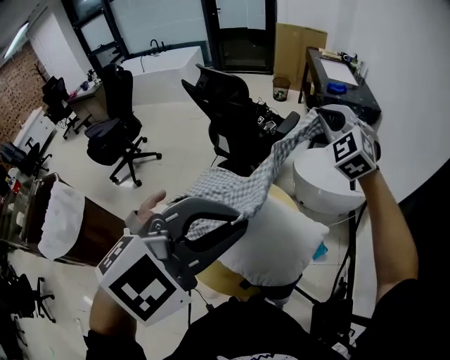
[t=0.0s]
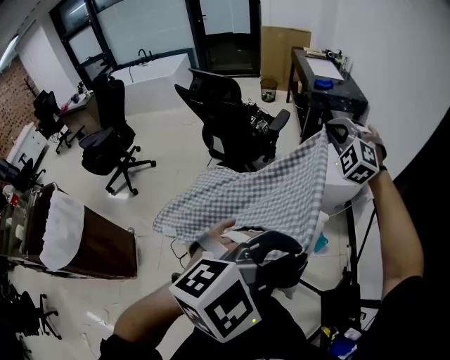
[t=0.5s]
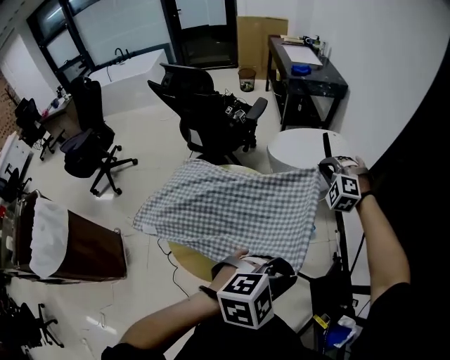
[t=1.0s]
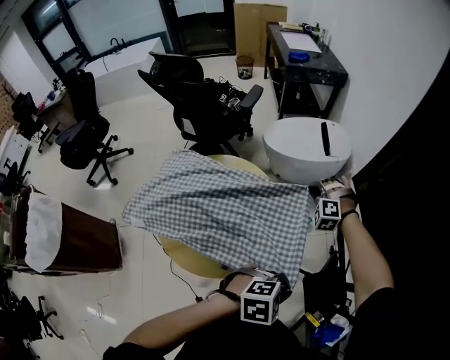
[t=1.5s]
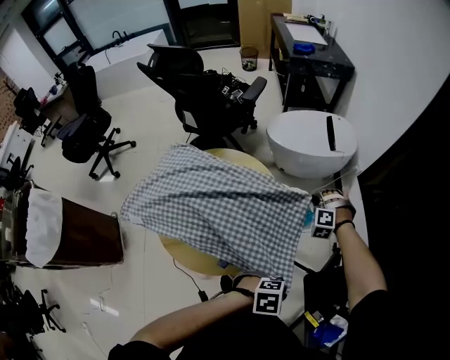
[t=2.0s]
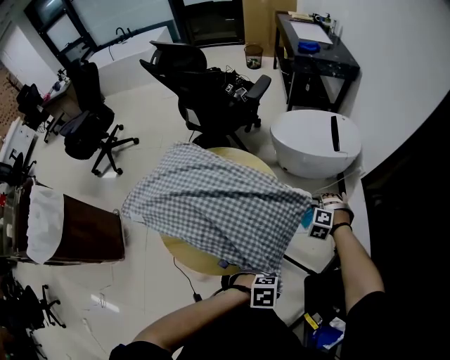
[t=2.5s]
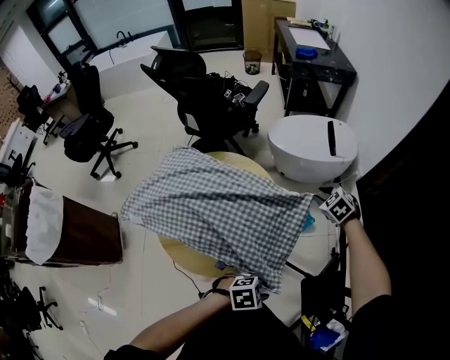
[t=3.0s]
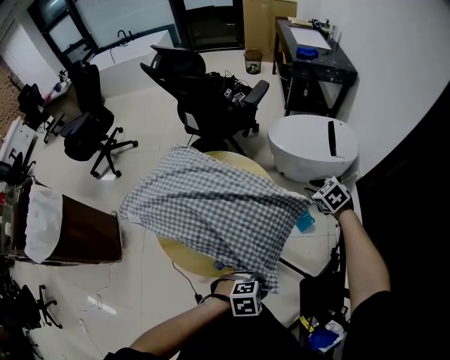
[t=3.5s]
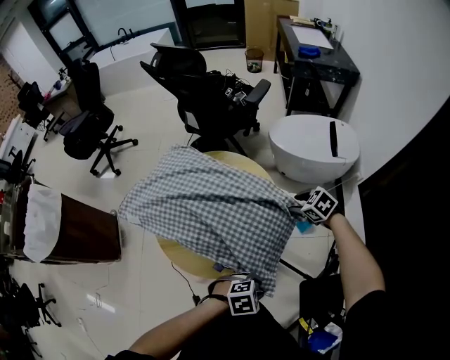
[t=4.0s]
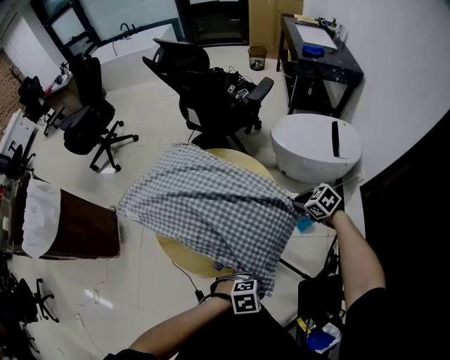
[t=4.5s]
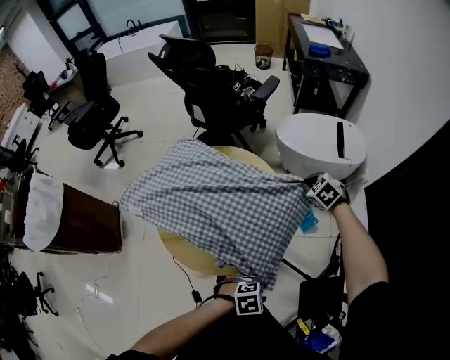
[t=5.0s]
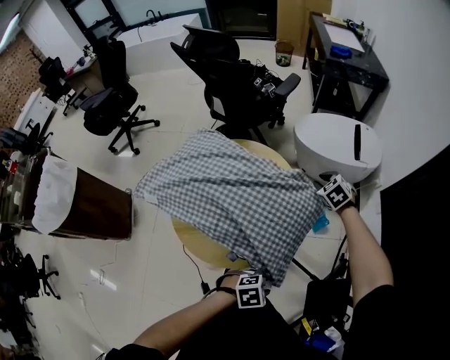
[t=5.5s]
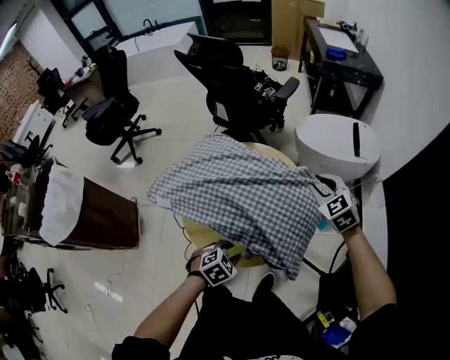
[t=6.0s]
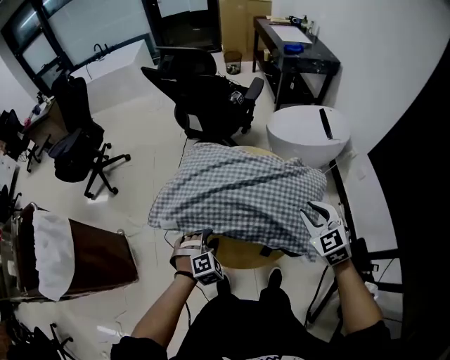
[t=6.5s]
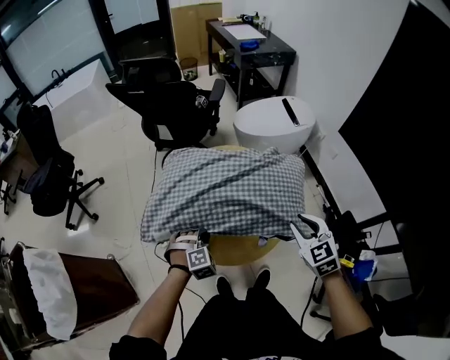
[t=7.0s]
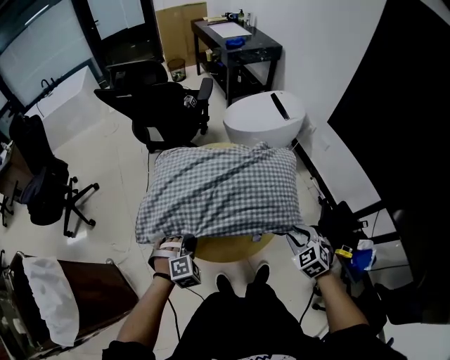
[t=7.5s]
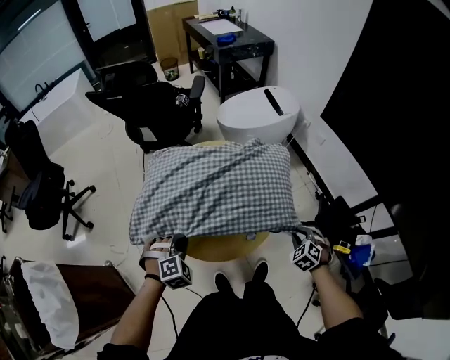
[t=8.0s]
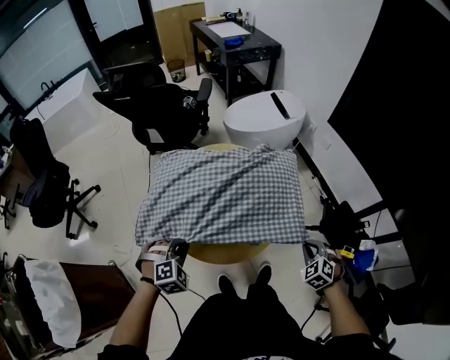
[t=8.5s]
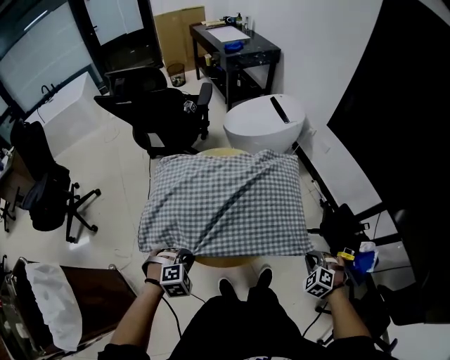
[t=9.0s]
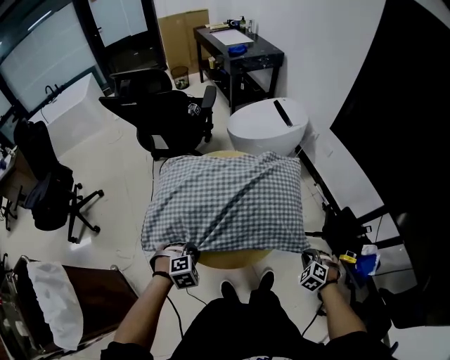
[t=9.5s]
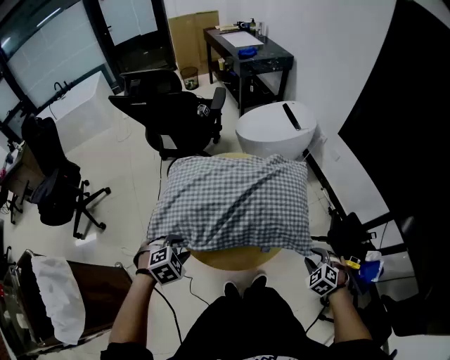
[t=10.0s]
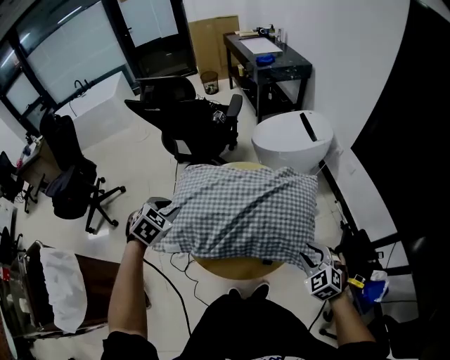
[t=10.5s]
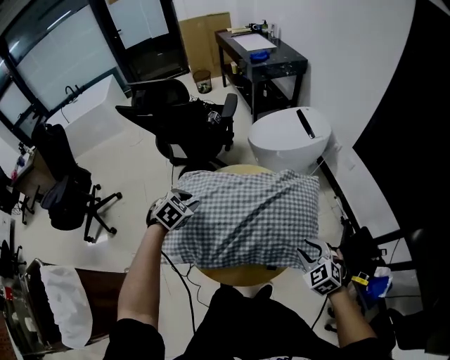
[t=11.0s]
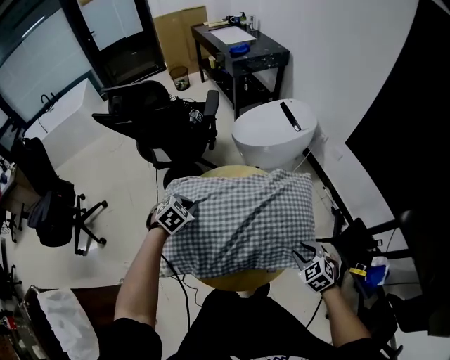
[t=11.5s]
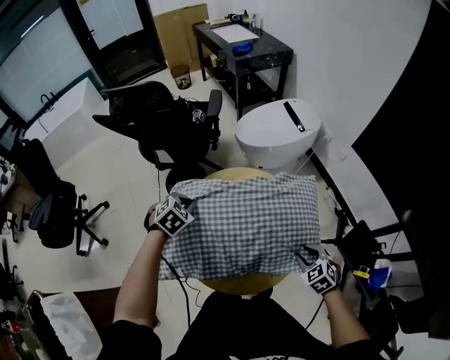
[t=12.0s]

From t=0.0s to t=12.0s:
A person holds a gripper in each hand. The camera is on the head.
From t=0.0s to t=2.0s: Both grippers move downward, roughly 40 cm. The right gripper tilts its fingers about 40 degrees downward. The left gripper rotates about 60 degrees.
From t=2.0s to t=4.0s: The left gripper moves some 10 cm, and opens. The right gripper reaches about 5 cm upward, then returns, rotates about 60 degrees, and opens.
From t=4.0s to t=6.0s: The left gripper changes place by about 20 cm, and swivels about 30 degrees. Meanwhile the right gripper shifts approximately 15 cm upward, swivels approximately 30 degrees, and closes, then opens again.
From t=6.0s to t=8.0s: The right gripper ends up some 35 cm from where it was, and changes its angle by roughly 40 degrees, while the left gripper changes place by roughly 20 cm, rotates around the line of its fingers by some 50 degrees, clockwise from behind, and closes.
From t=8.0s to t=10.0s: The right gripper swings up and down, some 5 cm each way, with 2 reversals. Meanwhile the left gripper ends up approximately 5 cm from where it was, rotates approximately 20 degrees, and opens up.
From t=10.0s to t=12.0s: The left gripper goes roughly 30 cm forward, and closes its fingers, while the right gripper moves forward and to the left, about 15 cm.

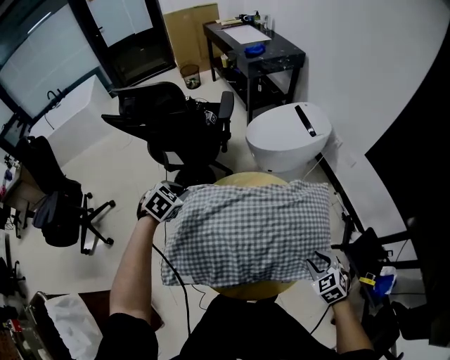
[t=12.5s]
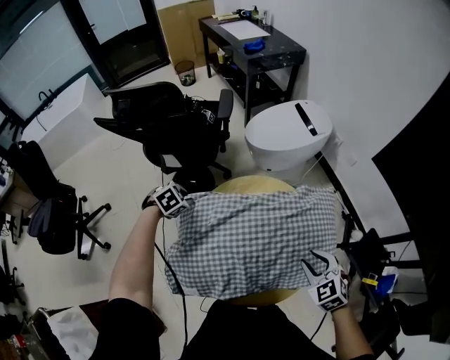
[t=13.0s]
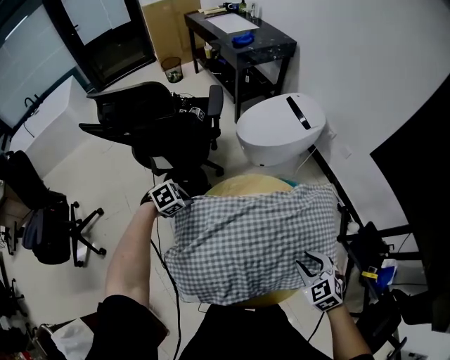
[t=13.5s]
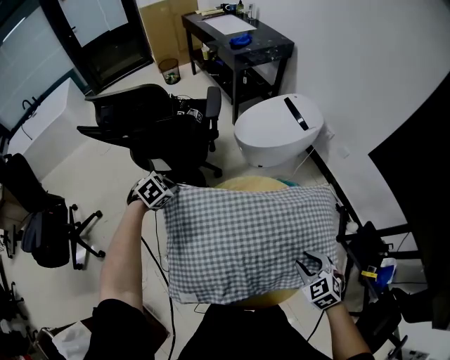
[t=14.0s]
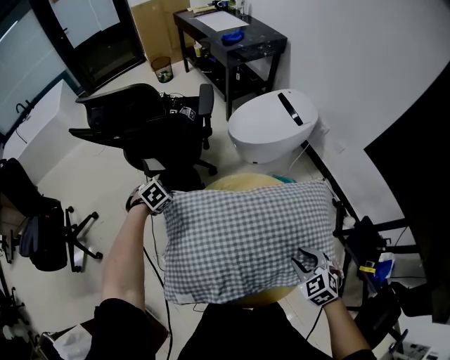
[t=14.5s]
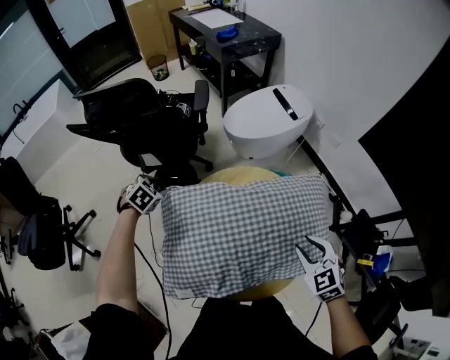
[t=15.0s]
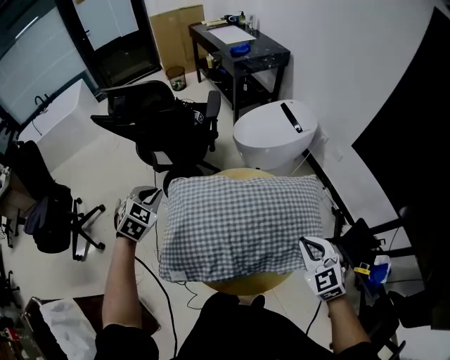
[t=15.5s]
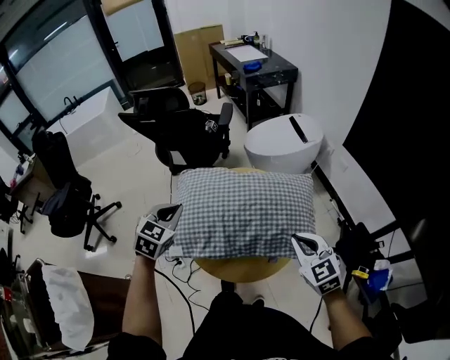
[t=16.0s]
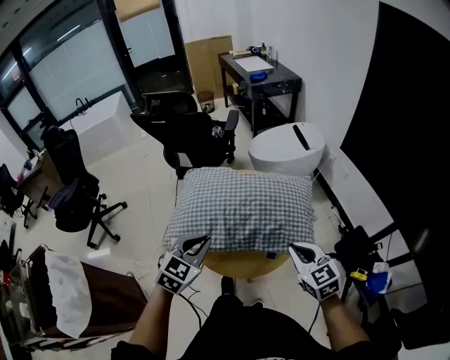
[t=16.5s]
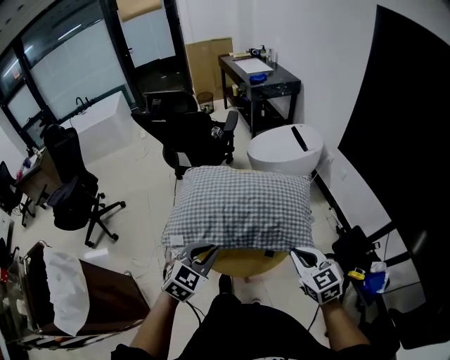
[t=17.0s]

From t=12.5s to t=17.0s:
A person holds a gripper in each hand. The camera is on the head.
From t=12.5s to t=14.5s: The left gripper moves up and down over roughly 15 cm, changing direction 2 times, and swivels some 20 degrees, while the right gripper moves some 10 cm.
From t=14.5s to t=17.0s: The right gripper changes place by some 20 cm, swivels about 30 degrees, and closes its fingers; the left gripper ends up some 50 cm from where it was, tilts its fingers about 40 degrees upward, and opens, then closes again.

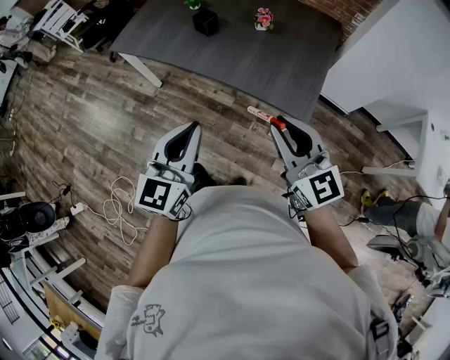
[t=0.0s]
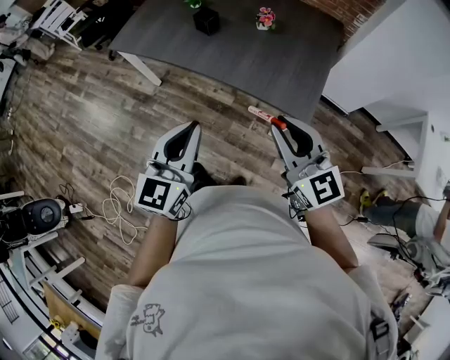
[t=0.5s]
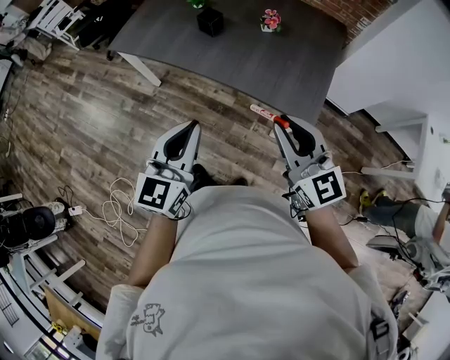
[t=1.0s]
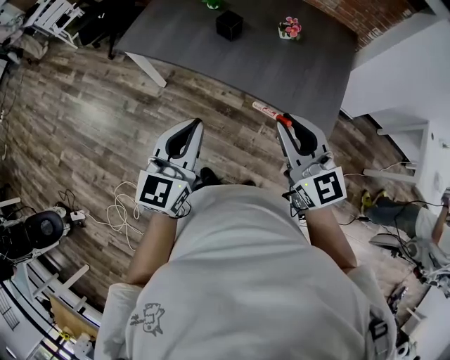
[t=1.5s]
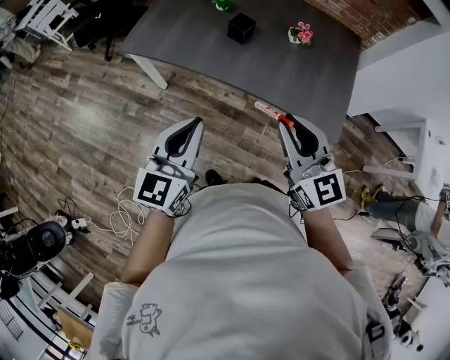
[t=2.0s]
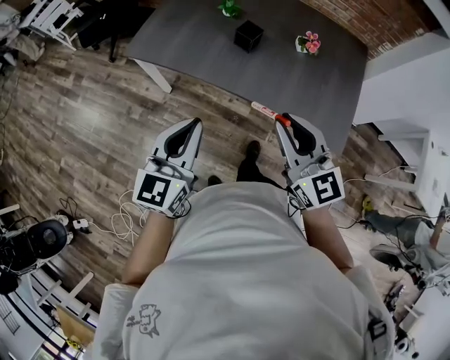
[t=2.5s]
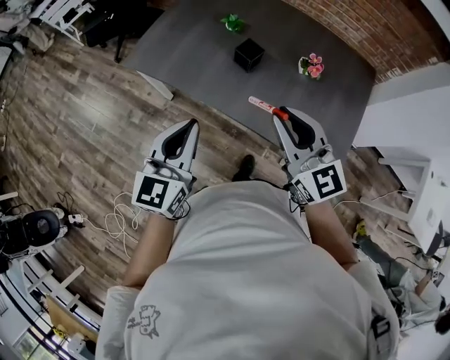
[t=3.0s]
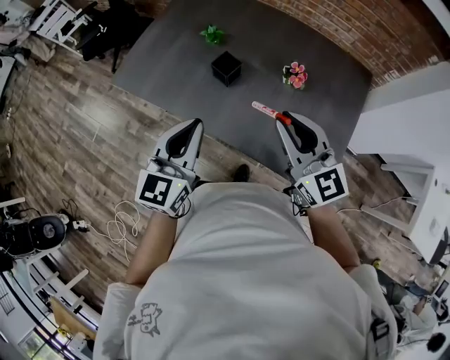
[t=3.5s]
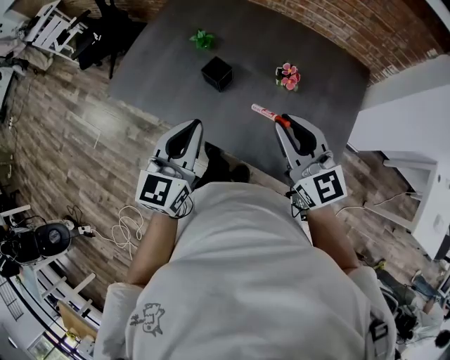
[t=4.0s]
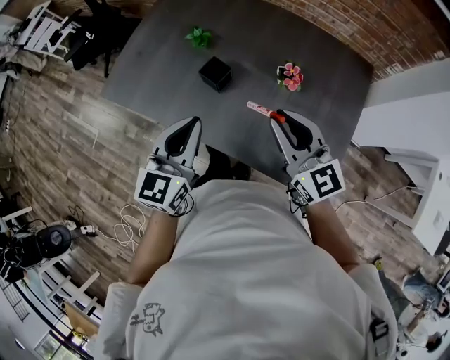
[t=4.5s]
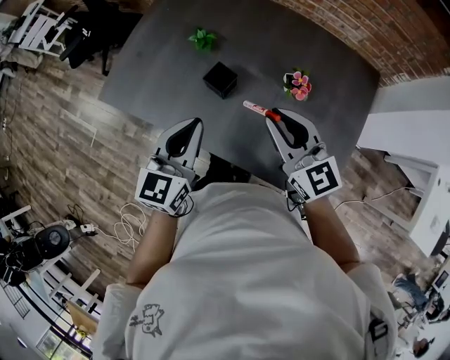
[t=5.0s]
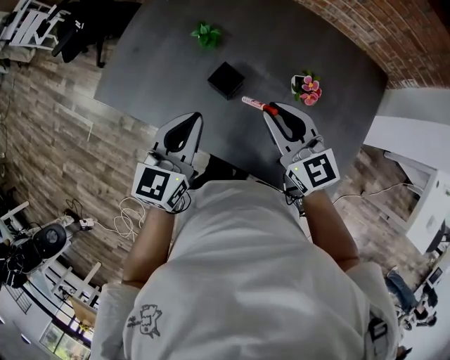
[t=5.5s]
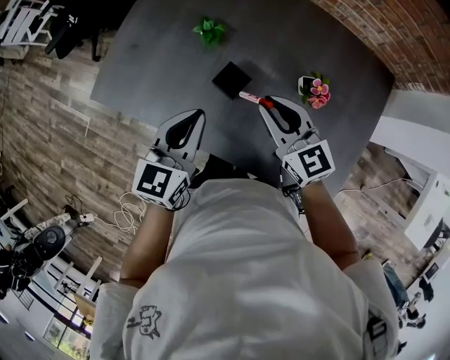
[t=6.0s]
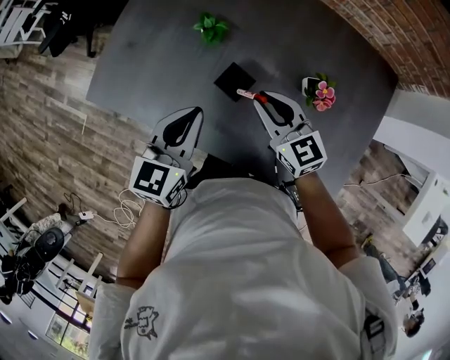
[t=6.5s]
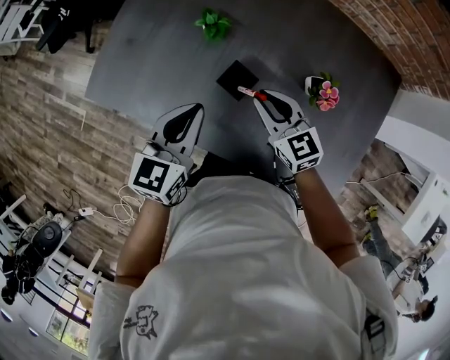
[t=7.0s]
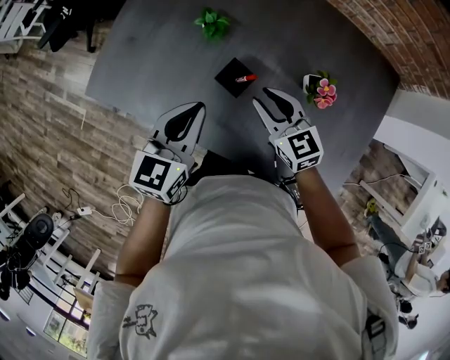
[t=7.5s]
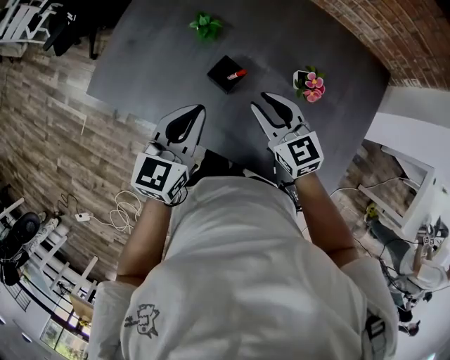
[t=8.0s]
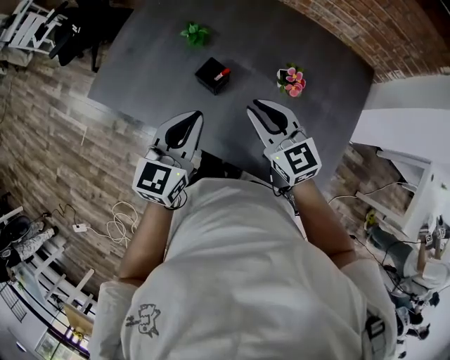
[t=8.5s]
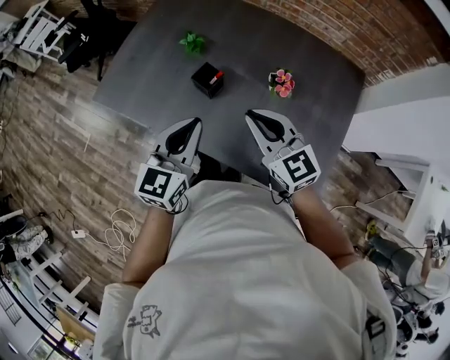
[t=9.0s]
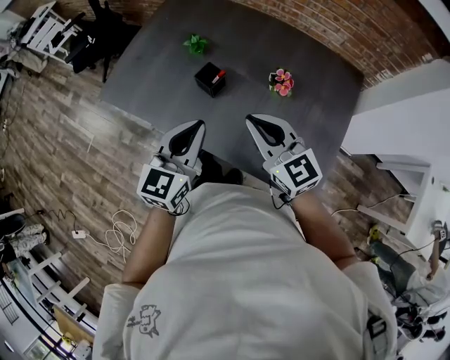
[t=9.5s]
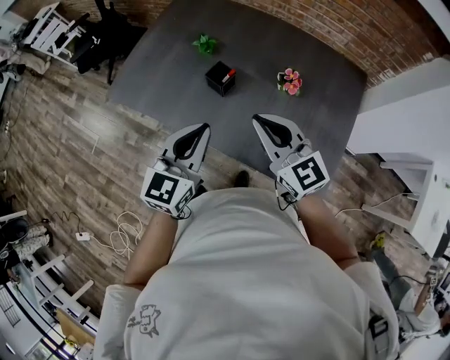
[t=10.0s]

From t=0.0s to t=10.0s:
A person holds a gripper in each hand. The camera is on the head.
From t=0.0s to t=2.0s: The two grippers go roughly 25 cm to the left and forward.
From t=2.0s to t=4.0s: Both grippers move forward and to the right, approximately 30 cm.
From t=4.0s to t=6.0s: The right gripper goes some 25 cm forward, downward and to the left. The left gripper goes some 20 cm forward and downward.
From t=8.0s to t=10.0s: The two grippers go about 20 cm backward and upward. The right gripper closes.
